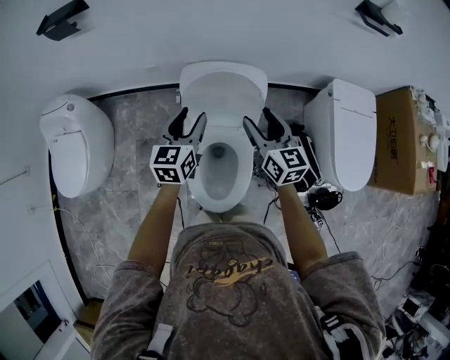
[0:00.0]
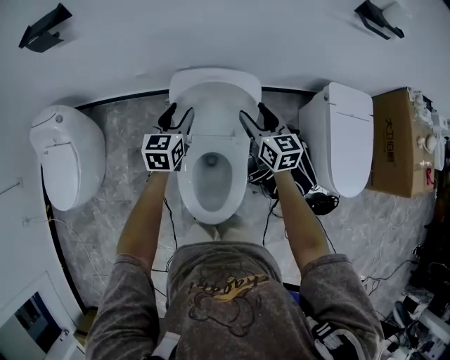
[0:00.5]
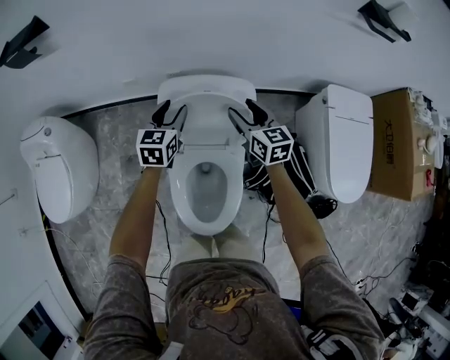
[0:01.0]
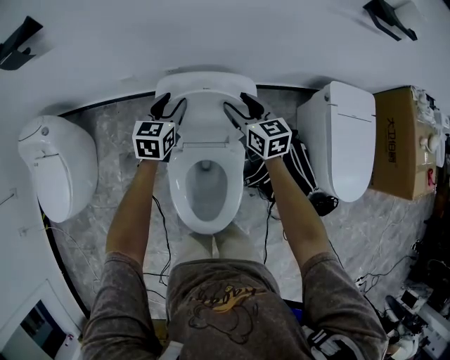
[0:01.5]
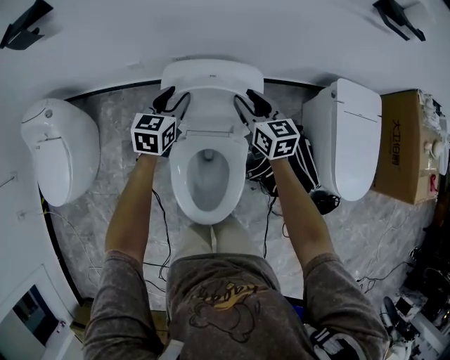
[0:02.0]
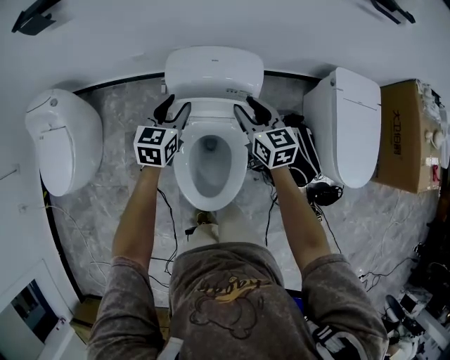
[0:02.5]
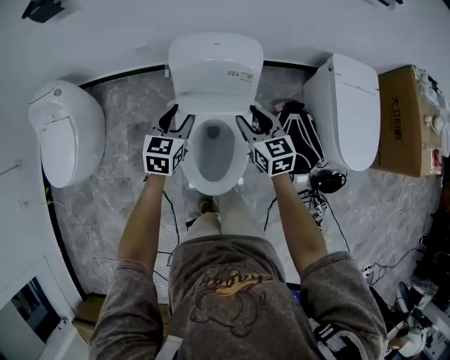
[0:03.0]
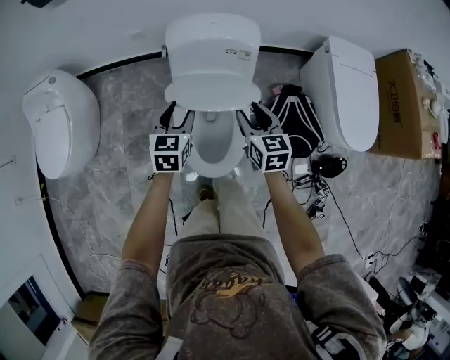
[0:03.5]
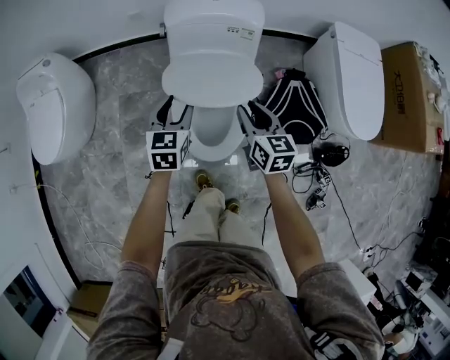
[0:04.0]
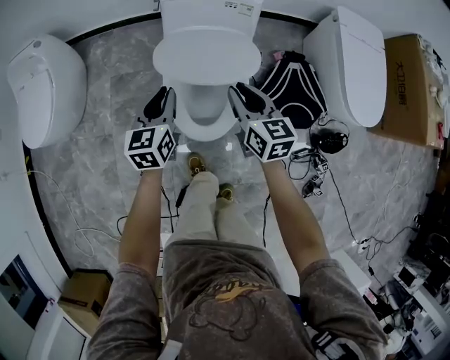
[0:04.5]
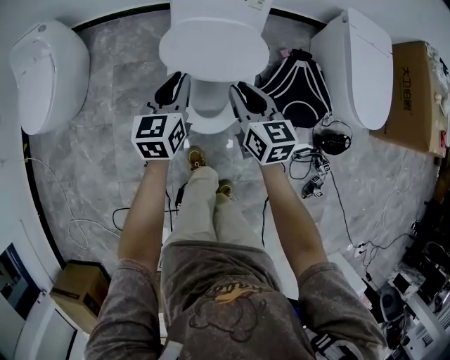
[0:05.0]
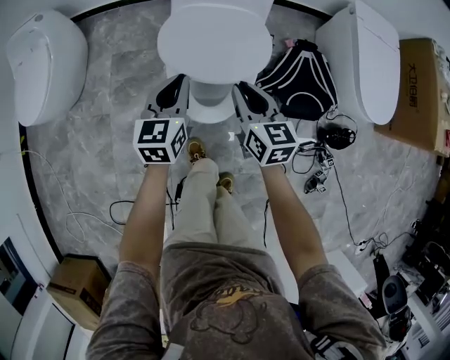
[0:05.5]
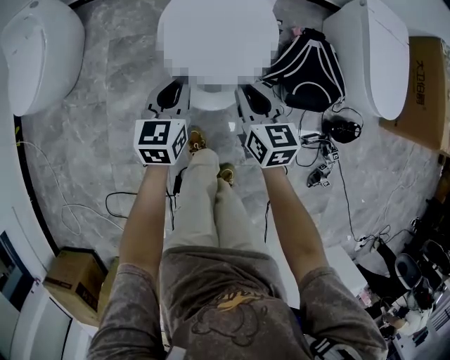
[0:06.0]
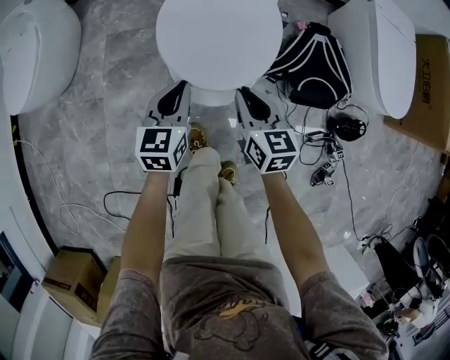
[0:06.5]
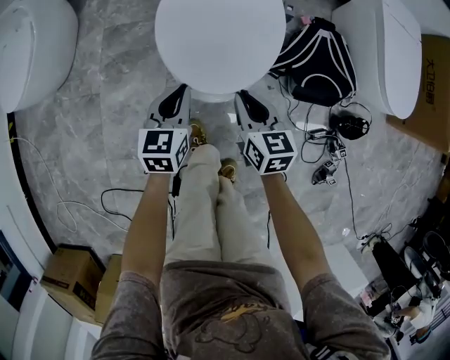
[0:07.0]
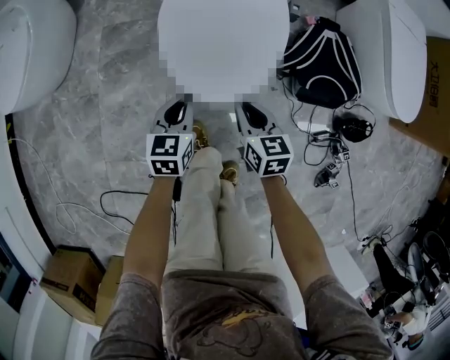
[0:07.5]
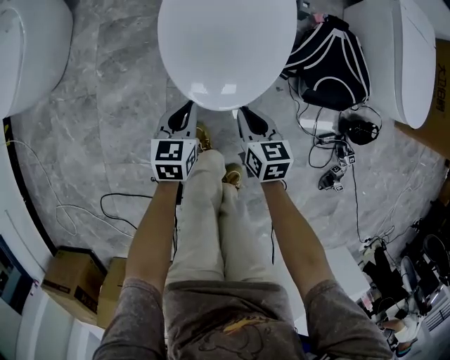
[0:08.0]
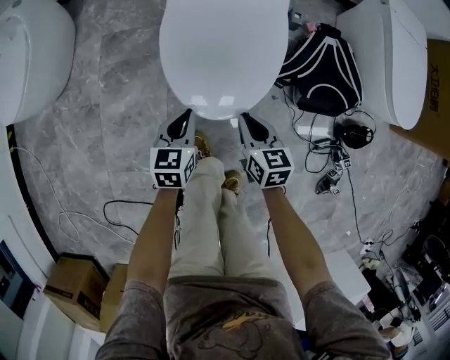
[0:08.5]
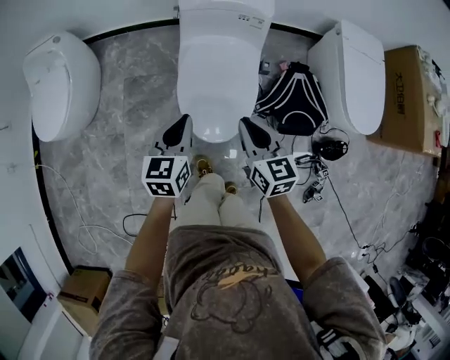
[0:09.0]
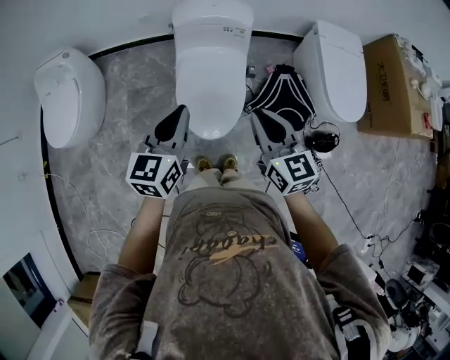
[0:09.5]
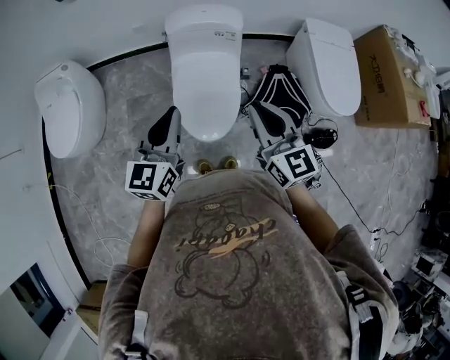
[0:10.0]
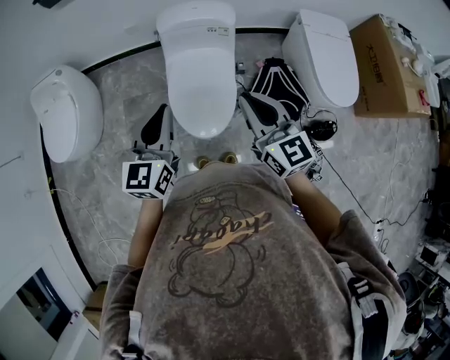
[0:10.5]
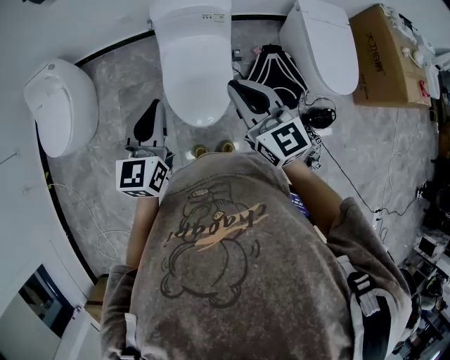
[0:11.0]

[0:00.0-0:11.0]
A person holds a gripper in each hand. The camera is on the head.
0:00.0 to 0:02.0: The two grippers go about 15 cm forward and downward.
0:02.0 to 0:03.5: Both grippers move backward, about 25 cm.
0:03.5 to 0:05.5: Both grippers travel together backward and downward, some 15 cm. The right gripper closes its fingers. The left gripper closes up.
0:05.5 to 0:07.5: Both grippers move downward and backward, some 20 cm.
0:07.5 to 0:09.0: Both grippers move upward, some 30 cm.
0:09.0 to 0:11.0: The grippers both shift upward by about 20 cm. The right gripper changes its angle by roughly 20 degrees.

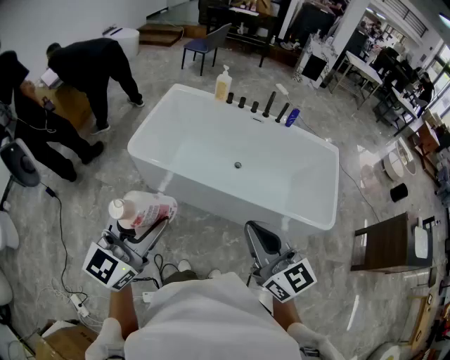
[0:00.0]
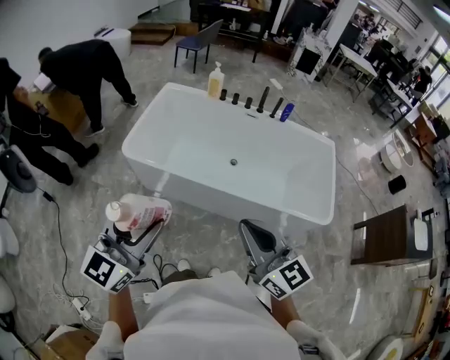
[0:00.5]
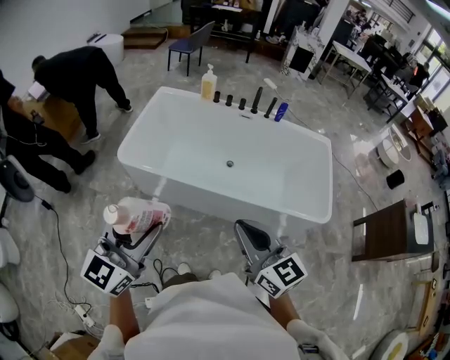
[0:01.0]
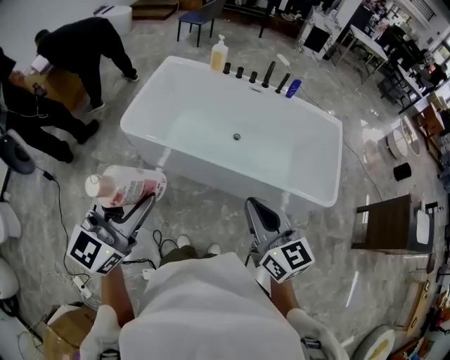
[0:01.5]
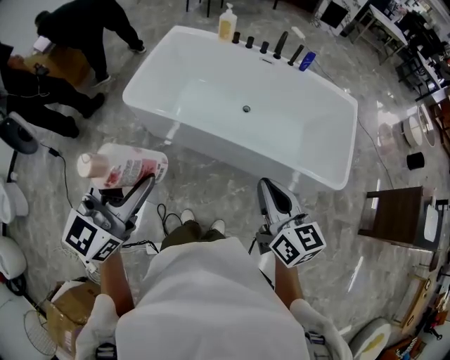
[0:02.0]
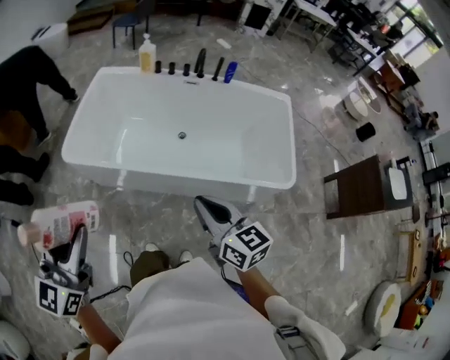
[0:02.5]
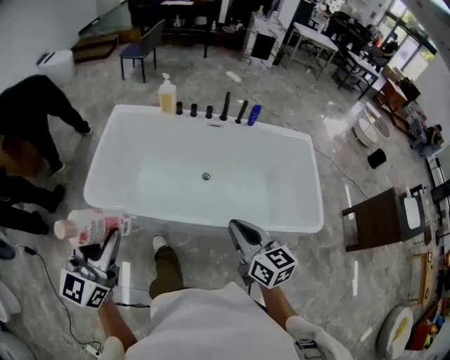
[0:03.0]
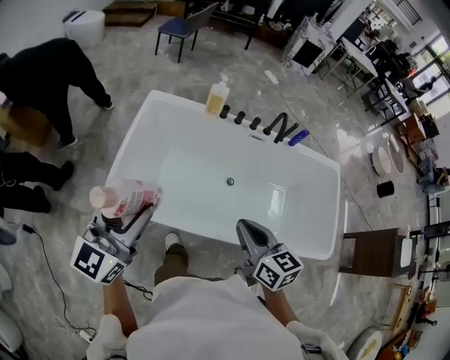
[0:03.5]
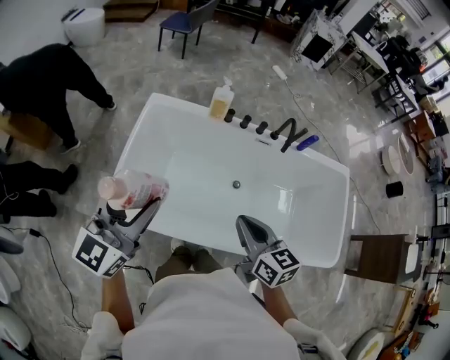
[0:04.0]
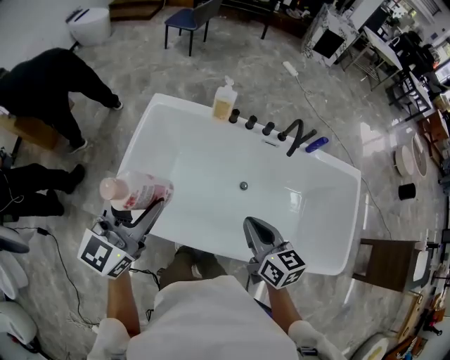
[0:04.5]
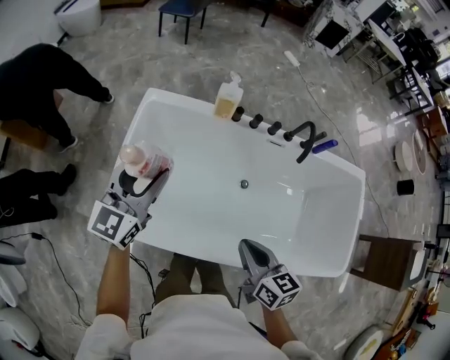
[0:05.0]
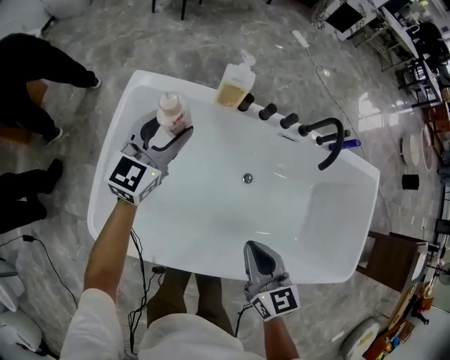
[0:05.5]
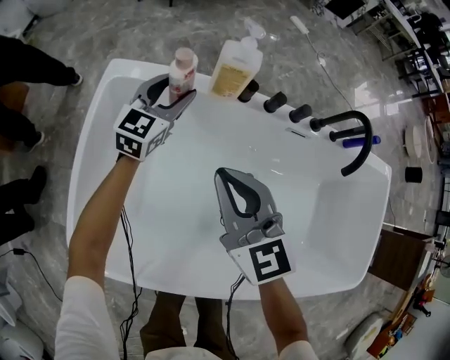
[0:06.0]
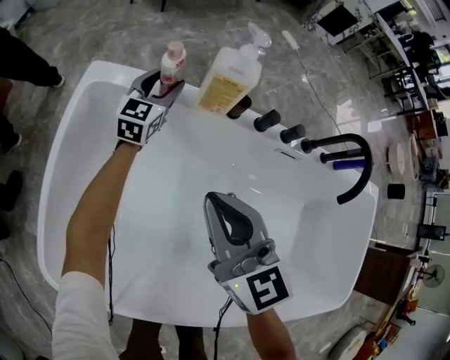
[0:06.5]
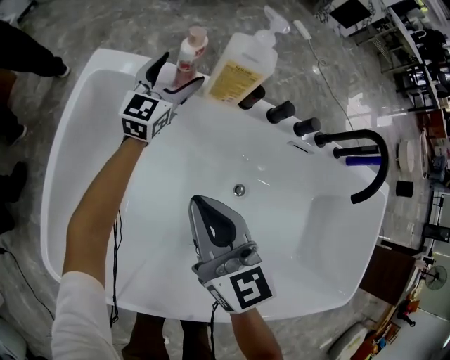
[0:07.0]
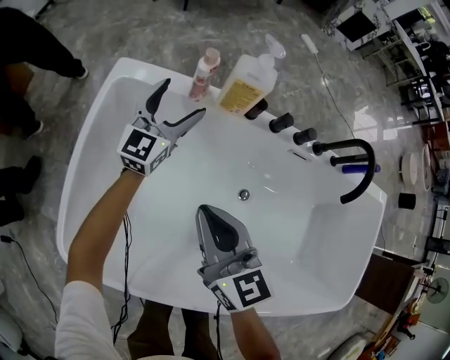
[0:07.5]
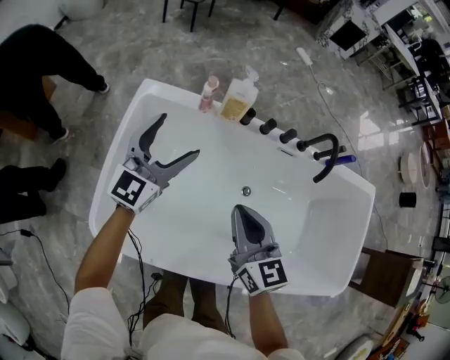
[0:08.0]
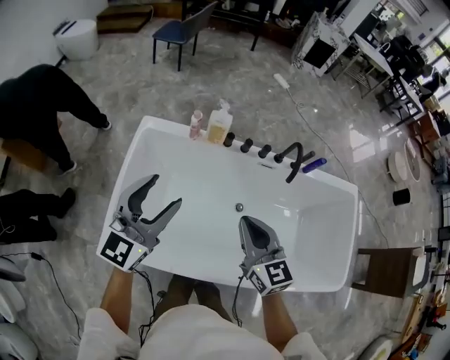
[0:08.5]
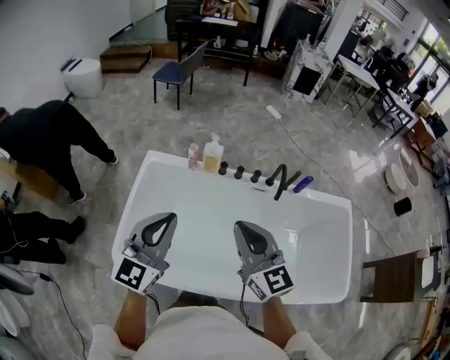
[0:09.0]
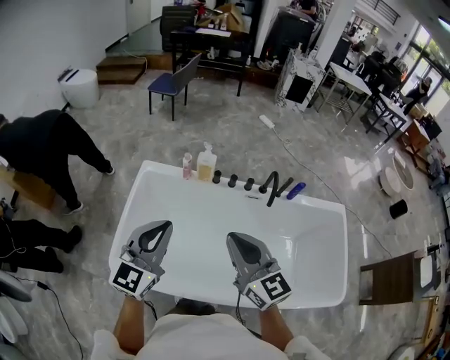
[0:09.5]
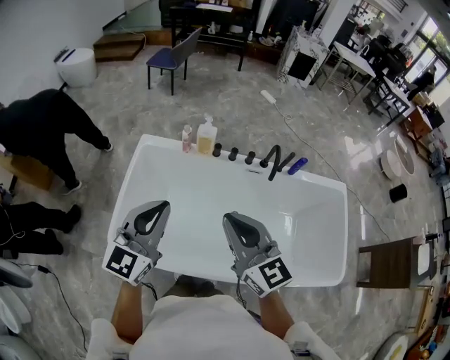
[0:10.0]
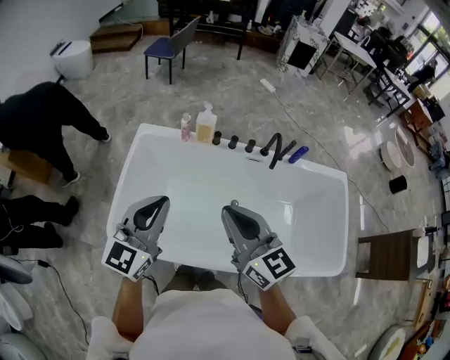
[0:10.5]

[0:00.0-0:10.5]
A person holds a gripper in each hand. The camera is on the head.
0:00.0 to 0:02.0: The left gripper moves some 5 cm. Meanwhile the right gripper shifts some 10 cm downward and to the right, and swivels some 20 degrees.
0:02.0 to 0:04.0: The pair of grippers is taken forward, some 50 cm.
0:04.0 to 0:06.5: The left gripper travels forward and downward by about 80 cm. The right gripper moves forward and downward, approximately 40 cm, and changes its angle by about 20 degrees.
0:06.5 to 0:08.5: The left gripper travels upward and backward by roughly 60 cm; the right gripper shifts approximately 30 cm upward and backward.
0:08.5 to 0:10.5: The left gripper is displaced backward by roughly 10 cm, and closes, while the right gripper heads upward and backward, covering approximately 15 cm.

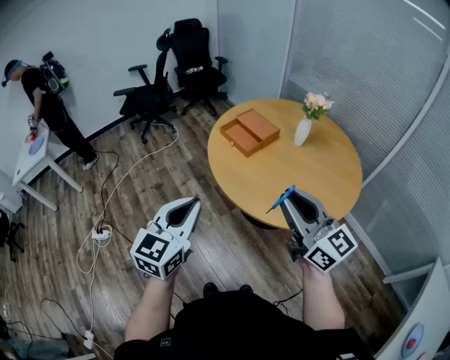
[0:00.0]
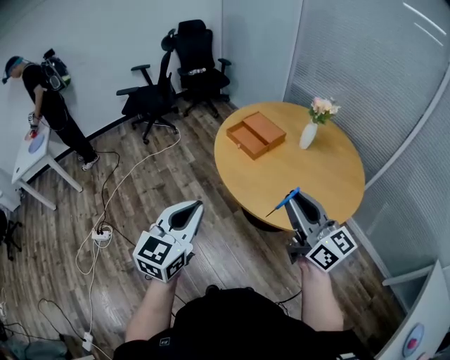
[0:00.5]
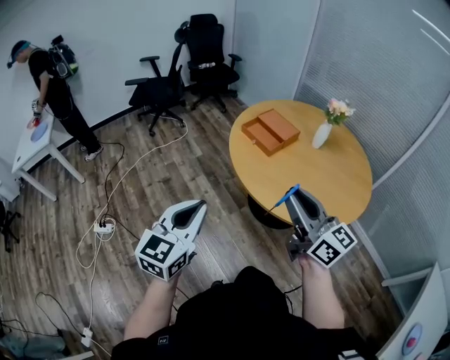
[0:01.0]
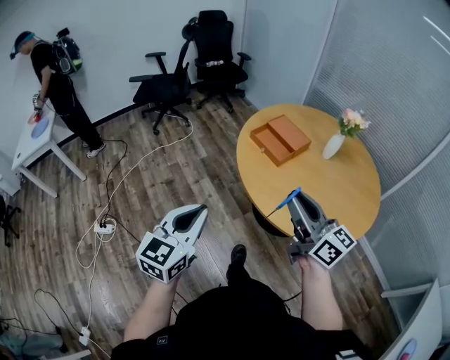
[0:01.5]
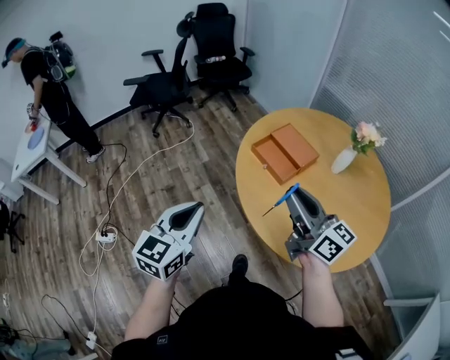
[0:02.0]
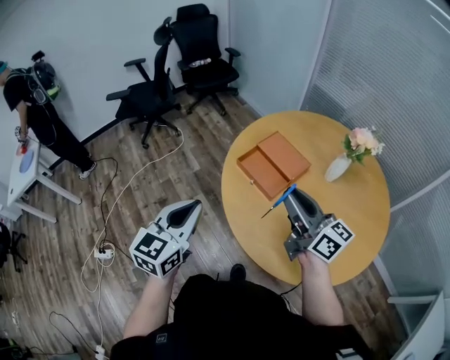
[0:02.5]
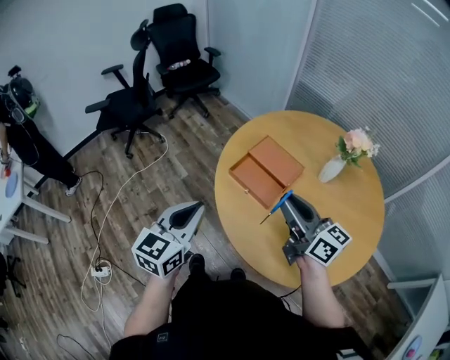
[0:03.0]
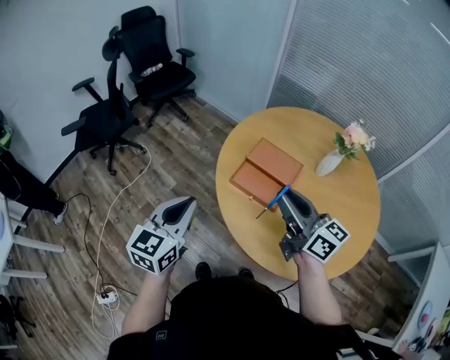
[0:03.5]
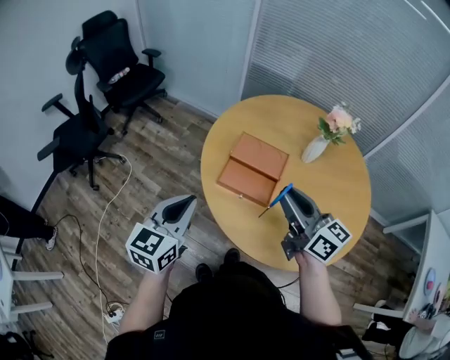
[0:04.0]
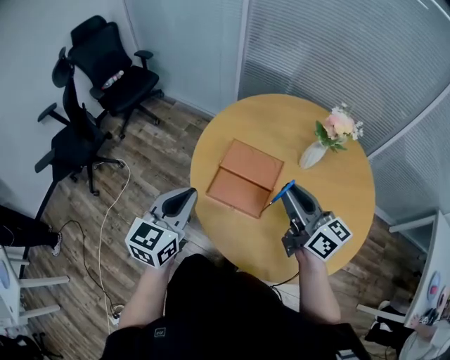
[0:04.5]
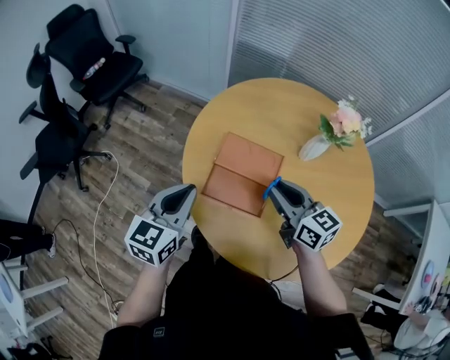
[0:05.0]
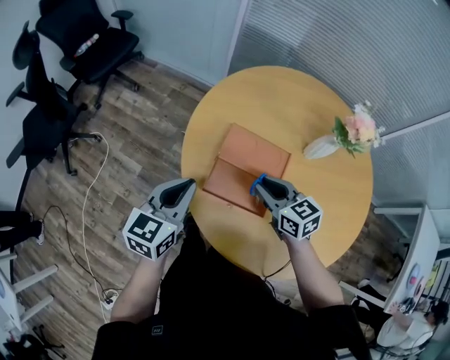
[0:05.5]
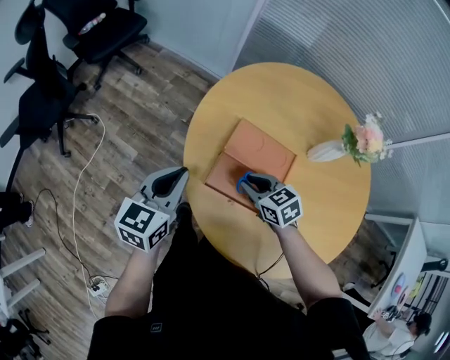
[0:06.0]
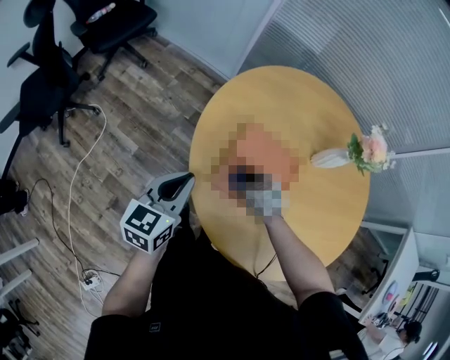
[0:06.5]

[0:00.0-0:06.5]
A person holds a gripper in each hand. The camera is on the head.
0:00.0 to 0:02.0: The right gripper moves forward, about 25 cm; the left gripper heads forward and to the left, covering about 25 cm.
0:02.0 to 0:04.5: The right gripper shifts by roughly 25 cm, and rotates roughly 30 degrees. Meanwhile the left gripper shifts by some 35 cm, and turns by some 30 degrees.
0:04.5 to 0:06.5: The right gripper goes about 35 cm downward, and angles its fingers downward, by some 60 degrees; the left gripper is displaced downward and forward by roughly 15 cm.
